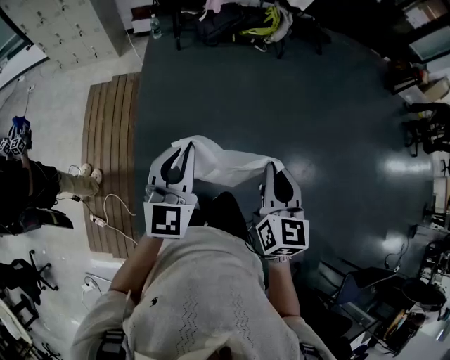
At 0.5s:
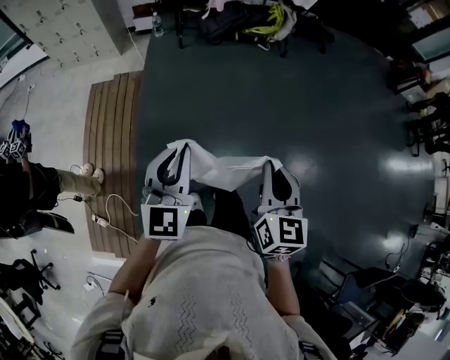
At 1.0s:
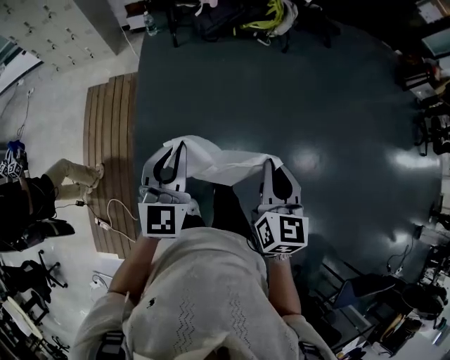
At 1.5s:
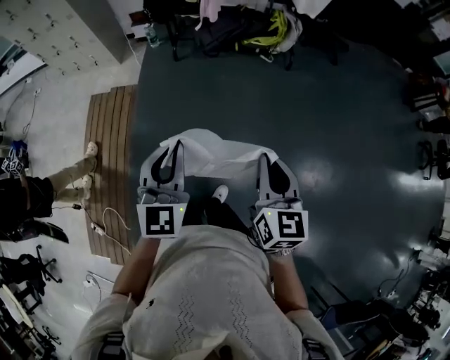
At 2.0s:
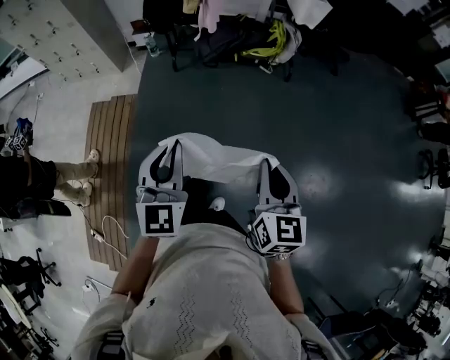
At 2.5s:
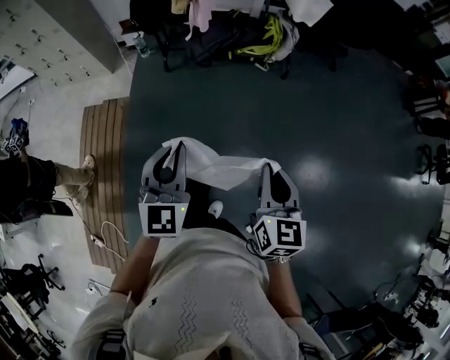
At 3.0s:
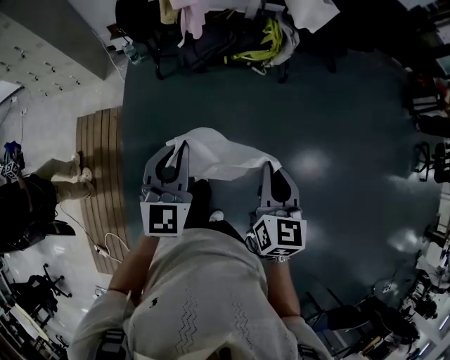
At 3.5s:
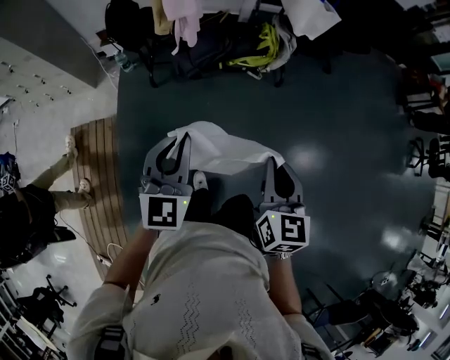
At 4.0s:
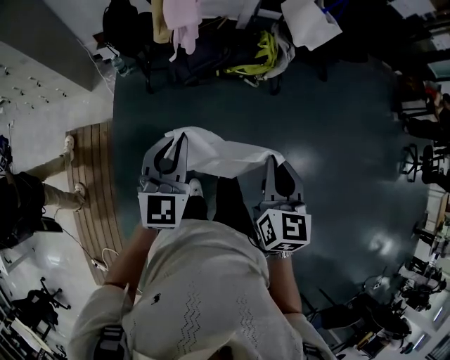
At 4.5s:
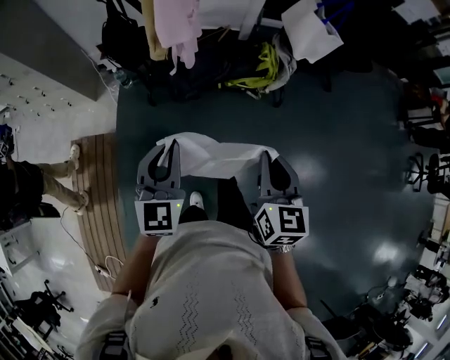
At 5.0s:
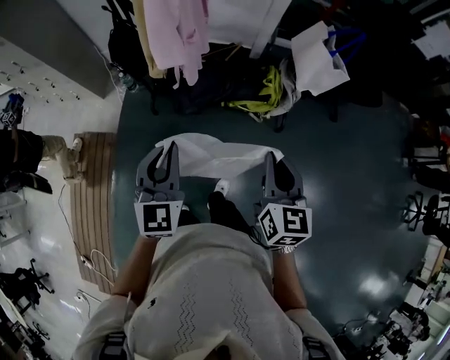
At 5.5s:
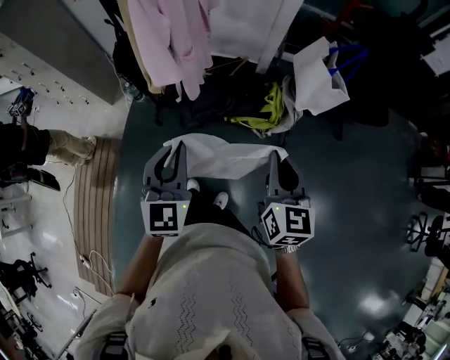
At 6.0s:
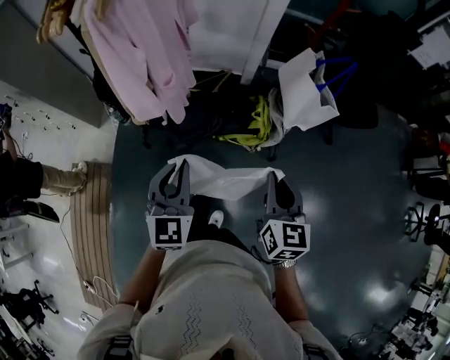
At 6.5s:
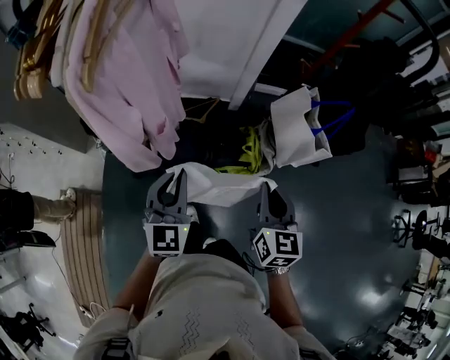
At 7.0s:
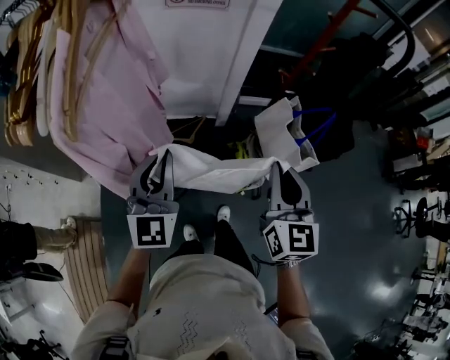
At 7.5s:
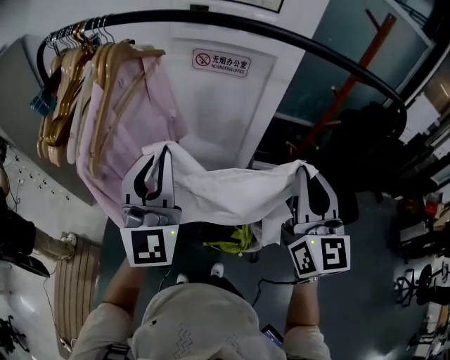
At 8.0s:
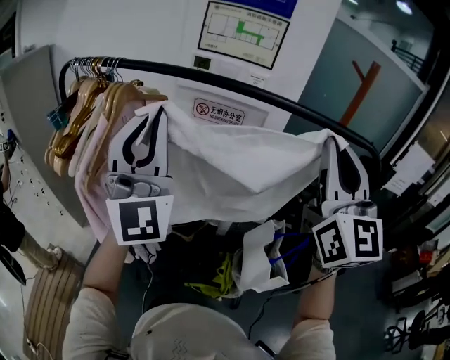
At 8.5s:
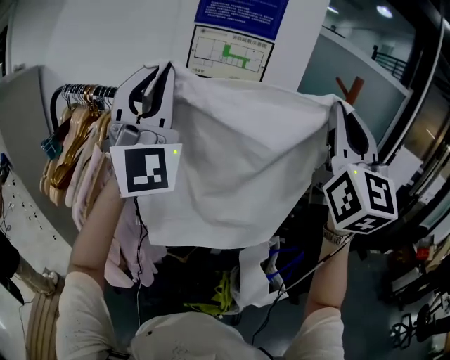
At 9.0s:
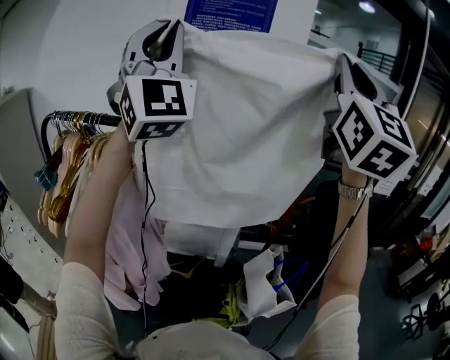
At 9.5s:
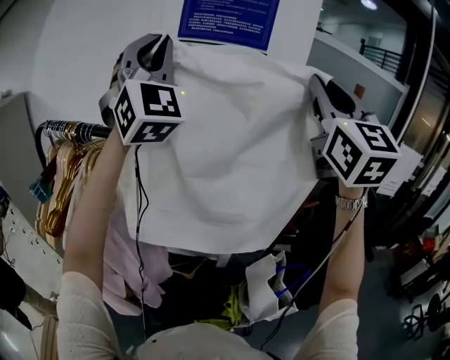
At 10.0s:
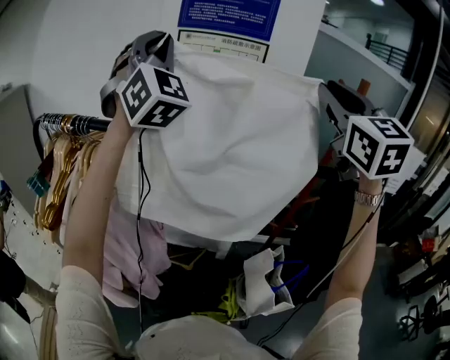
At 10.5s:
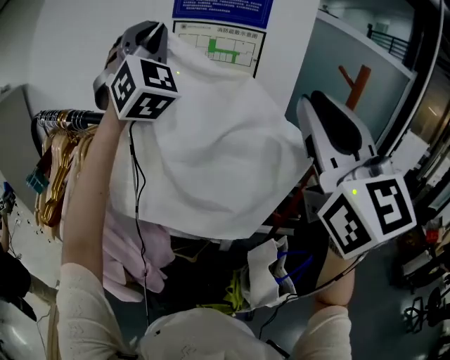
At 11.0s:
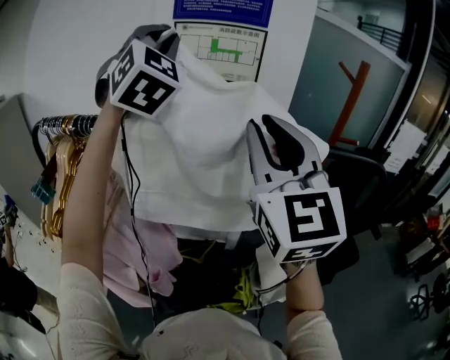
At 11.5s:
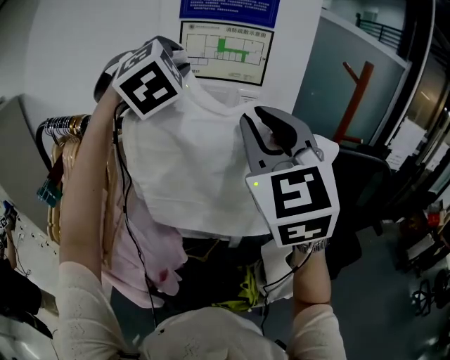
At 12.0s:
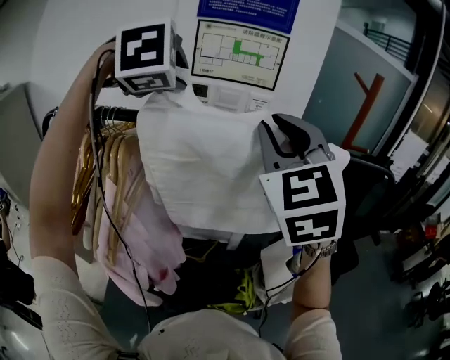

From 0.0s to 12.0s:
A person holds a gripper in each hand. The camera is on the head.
From 0.0s to 2.0s: Both grippers move forward and to the right, roughly 40 cm.
From 2.0s to 4.0s: Both grippers travel together forward, roughly 40 cm.
From 4.0s to 6.0s: Both grippers move forward and to the right, some 35 cm.
From 6.0s to 8.0s: The grippers both shift upward and forward by approximately 60 cm. The left gripper tilts its fingers about 50 degrees upward. The right gripper angles its fingers upward, by roughly 50 degrees.
From 8.0s to 10.0s: The grippers both shift forward and upward by roughly 25 cm. The left gripper swivels roughly 30 degrees.
From 10.0s to 12.0s: The left gripper heads downward, covering approximately 15 cm, tips its fingers downward by some 70 degrees, and opens; the right gripper shifts some 20 cm to the left and downward.

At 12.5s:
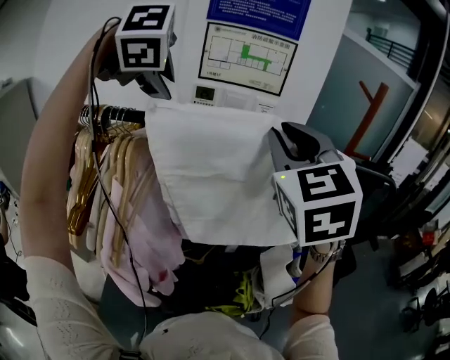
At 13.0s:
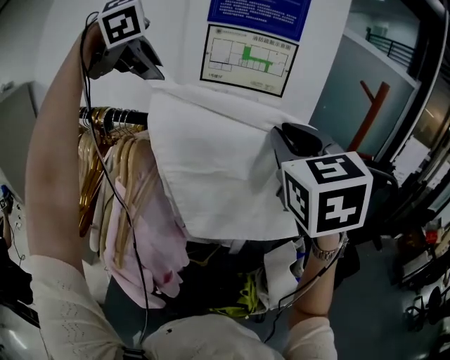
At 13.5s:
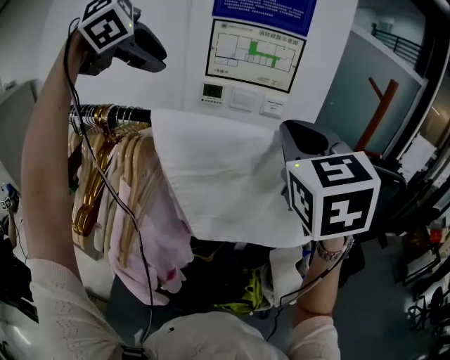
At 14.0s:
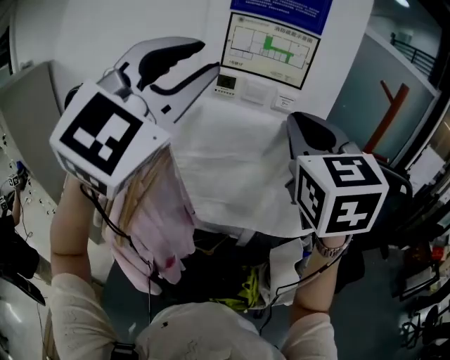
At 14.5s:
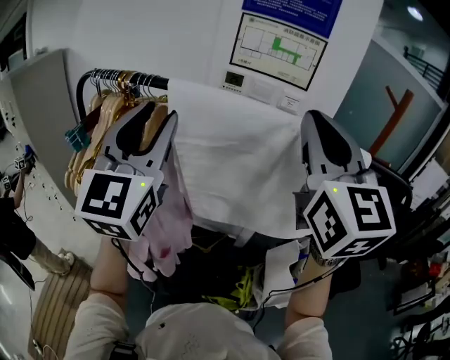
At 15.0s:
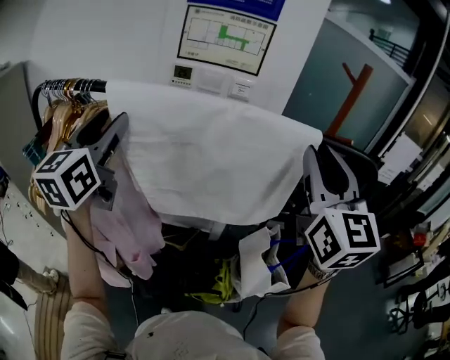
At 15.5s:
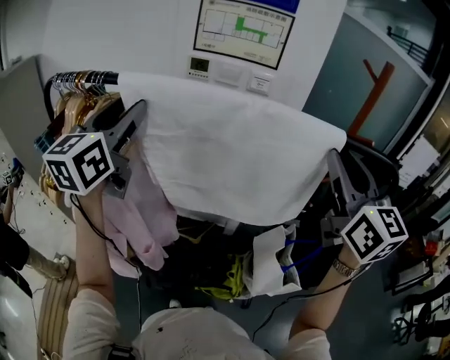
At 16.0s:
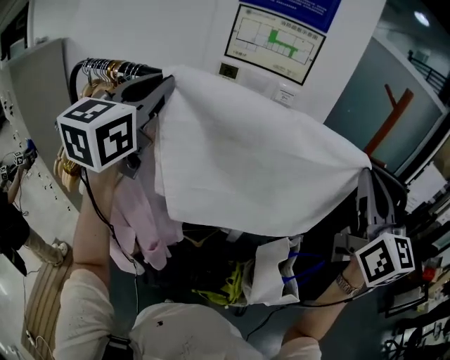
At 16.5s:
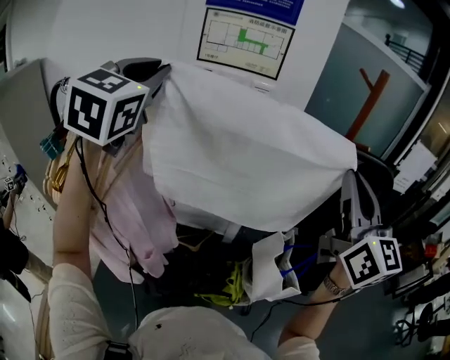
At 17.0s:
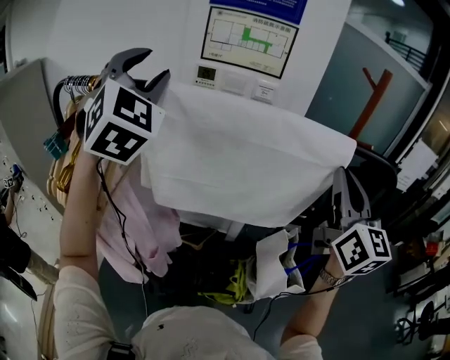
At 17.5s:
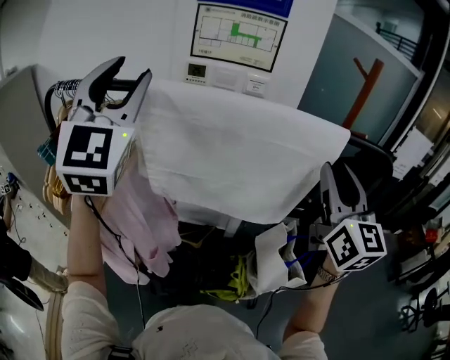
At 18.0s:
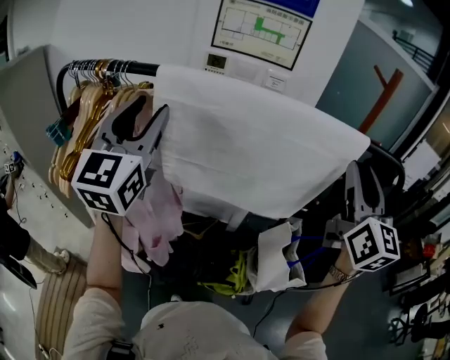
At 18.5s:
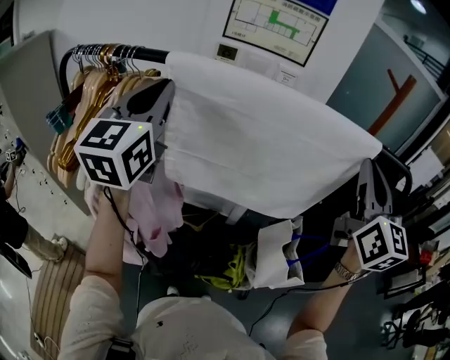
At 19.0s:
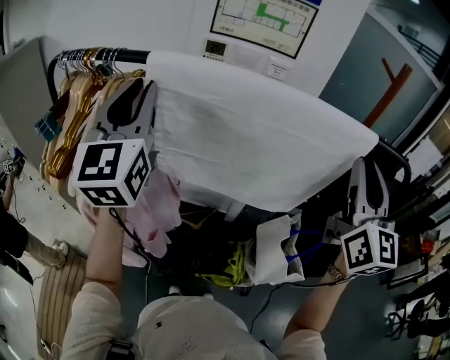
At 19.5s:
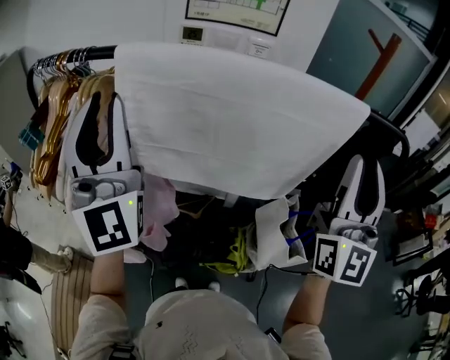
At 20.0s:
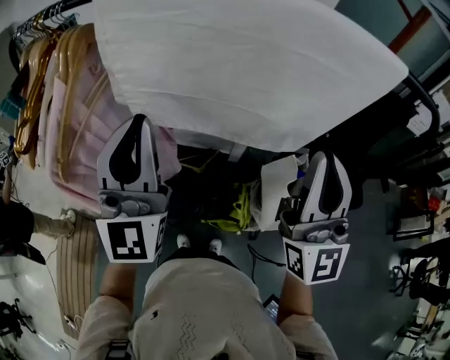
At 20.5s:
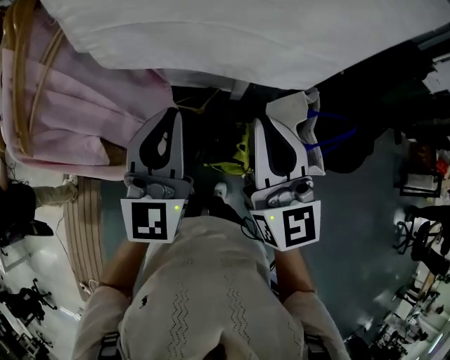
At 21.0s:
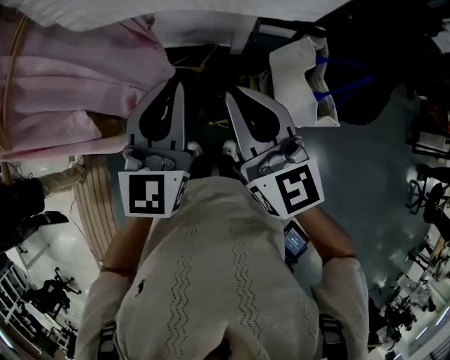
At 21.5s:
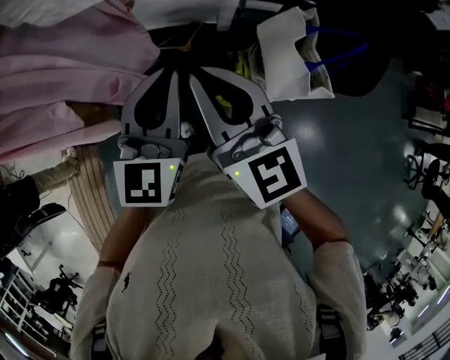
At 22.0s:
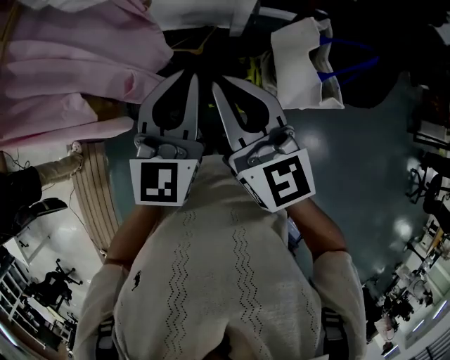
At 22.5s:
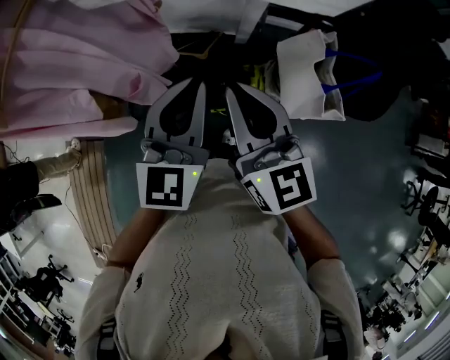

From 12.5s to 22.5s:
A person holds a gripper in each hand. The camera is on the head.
From 12.5s to 14.5s: The left gripper goes upward and returns, about 10 cm each way, and points its fingers some 80 degrees further upward; the right gripper changes place by roughly 5 cm, and changes its angle by roughly 30 degrees.
From 14.5s to 16.5s: The right gripper shifts some 20 cm to the right. Meanwhile the left gripper shifts about 10 cm forward and to the right, swivels about 20 degrees, and closes its fingers.
From 16.5s to 18.5s: The right gripper opens, then closes again, while the left gripper goes roughly 10 cm downward, swivels roughly 20 degrees, and opens and closes again.
From 18.5s to 20.5s: The right gripper heads downward and to the left, covering roughly 30 cm. Meanwhile the left gripper is displaced downward, to the right and backward by some 30 cm.
From 20.5s to 22.5s: The right gripper goes about 15 cm downward, to the left and backward, while the left gripper heads downward and backward, covering roughly 10 cm.

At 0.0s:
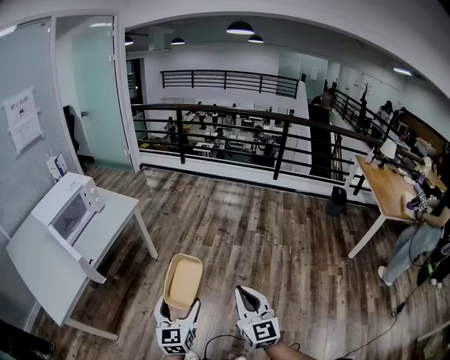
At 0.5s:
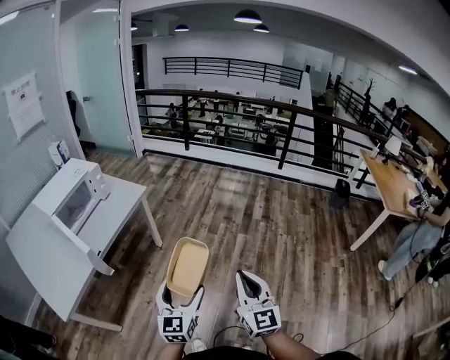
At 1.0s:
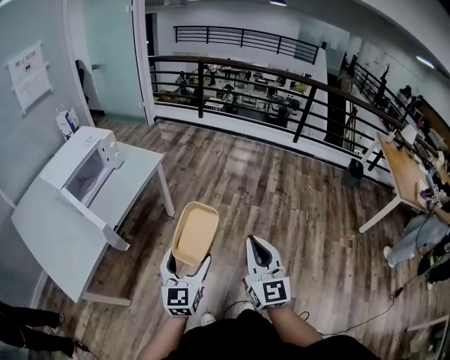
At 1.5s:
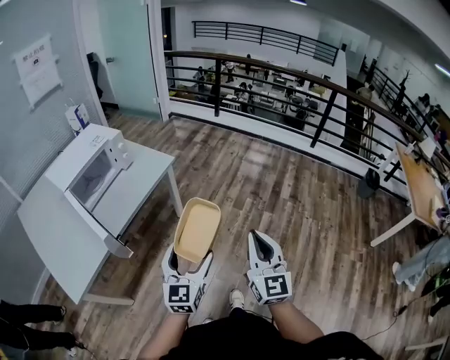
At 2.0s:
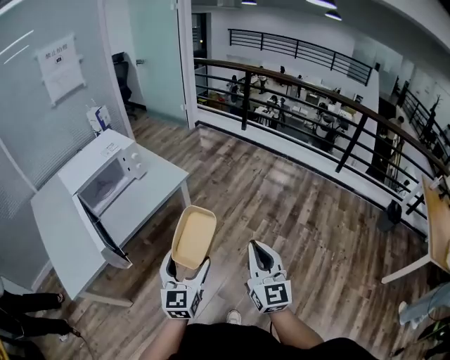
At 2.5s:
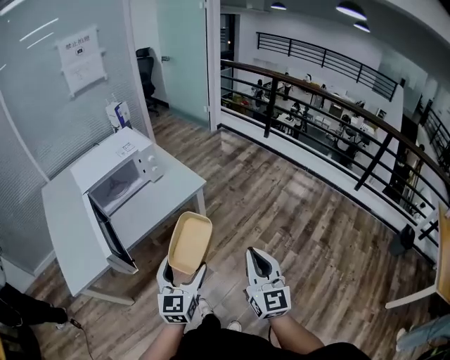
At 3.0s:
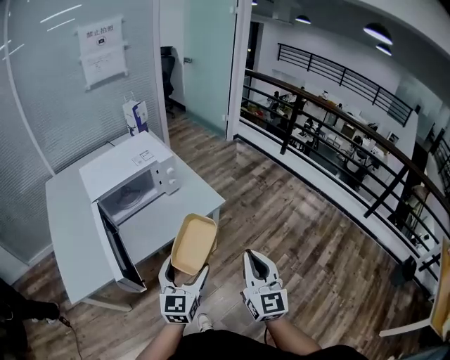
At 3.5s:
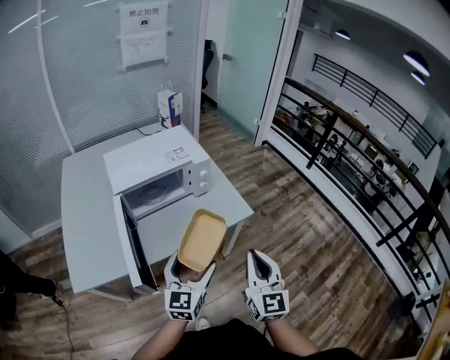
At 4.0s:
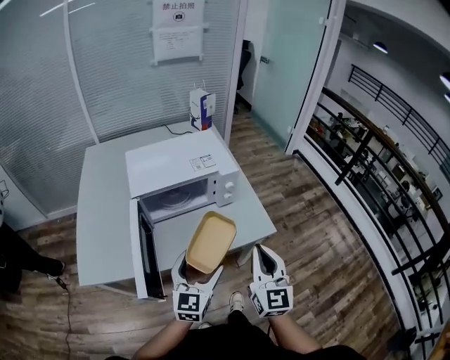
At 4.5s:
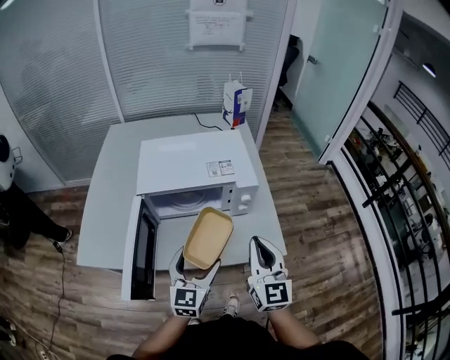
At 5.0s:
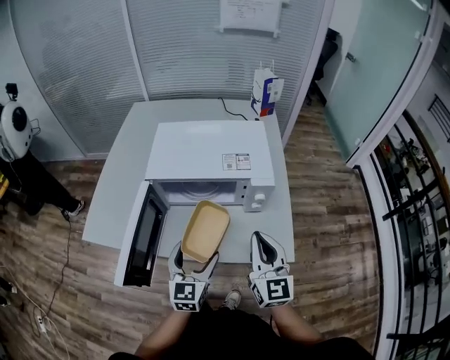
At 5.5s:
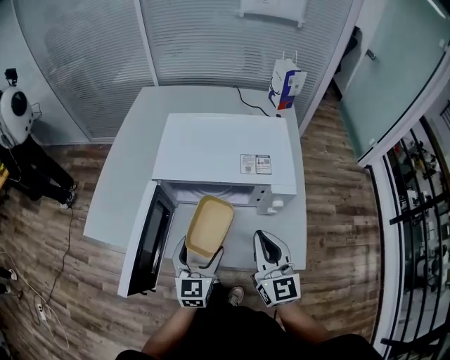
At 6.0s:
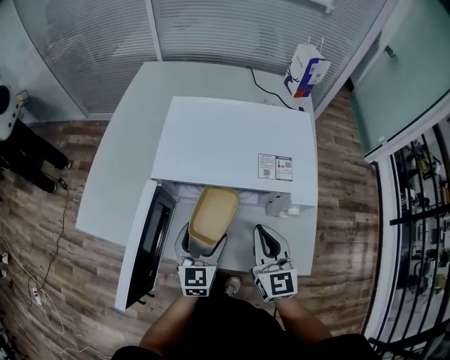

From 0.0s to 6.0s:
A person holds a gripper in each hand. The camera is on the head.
From 0.0s to 2.0s: The left gripper travels forward and to the left by some 25 cm, while the right gripper goes some 30 cm forward.
From 2.0s to 4.0s: The left gripper ends up about 35 cm from where it was, and swivels some 30 degrees. Meanwhile the right gripper changes place by roughly 40 cm, and rotates approximately 30 degrees.
From 4.0s to 6.0s: The right gripper shifts by some 30 cm, and rotates some 40 degrees, while the left gripper changes place by some 25 cm, and swivels approximately 30 degrees.
